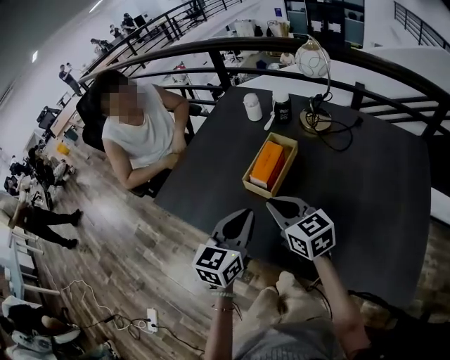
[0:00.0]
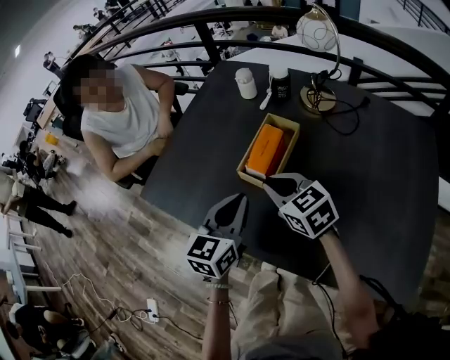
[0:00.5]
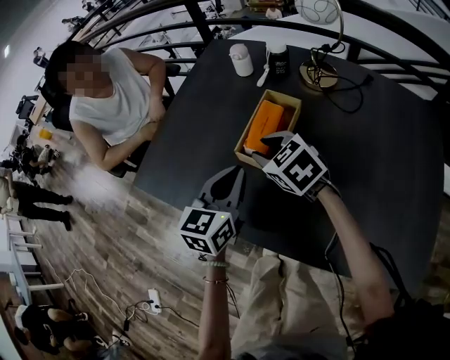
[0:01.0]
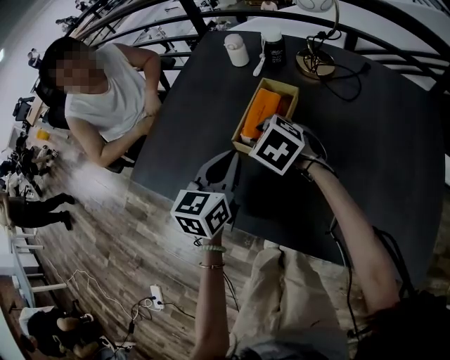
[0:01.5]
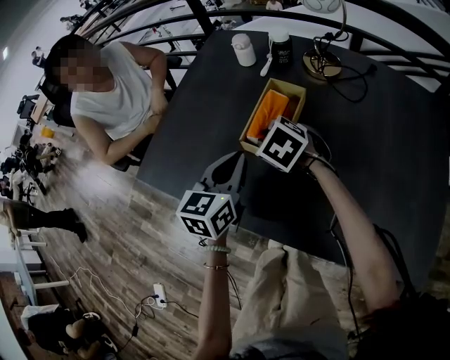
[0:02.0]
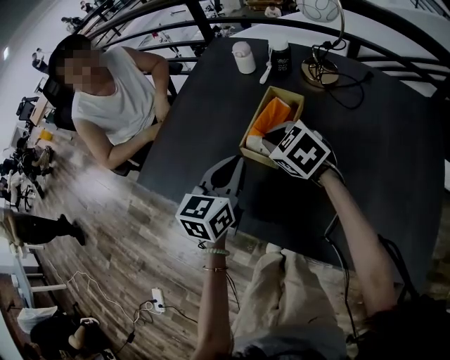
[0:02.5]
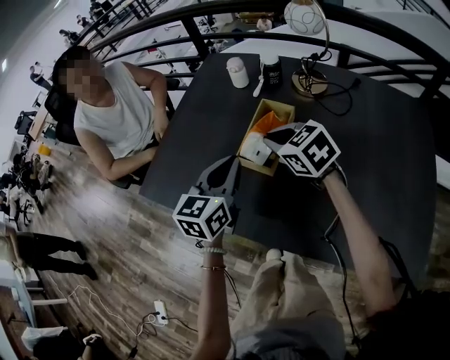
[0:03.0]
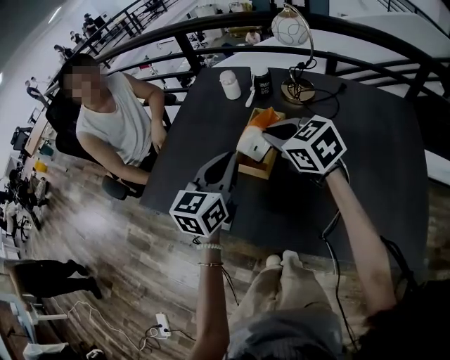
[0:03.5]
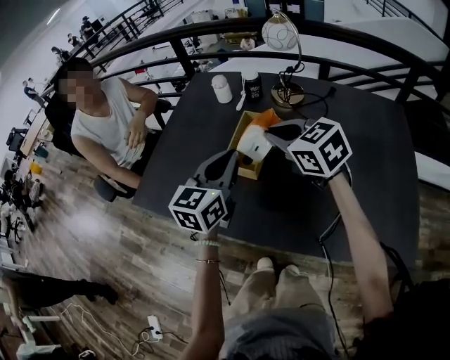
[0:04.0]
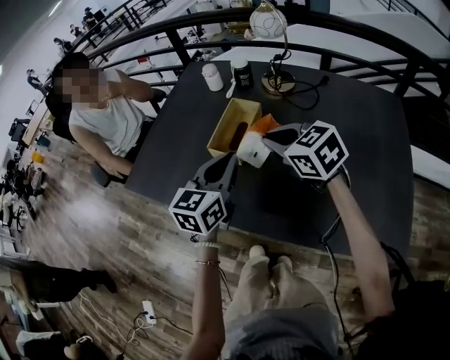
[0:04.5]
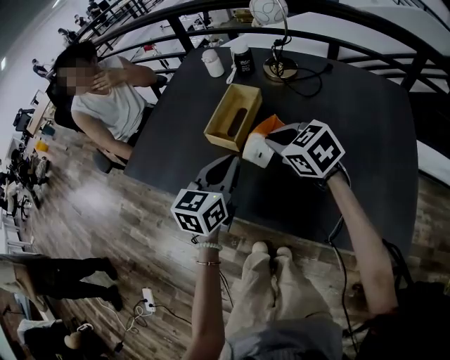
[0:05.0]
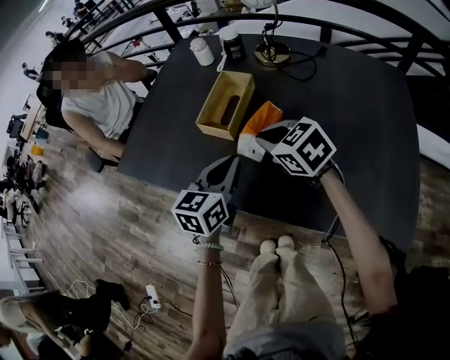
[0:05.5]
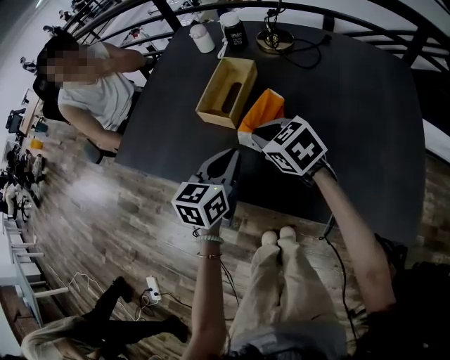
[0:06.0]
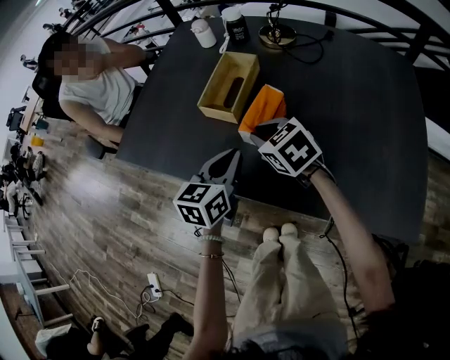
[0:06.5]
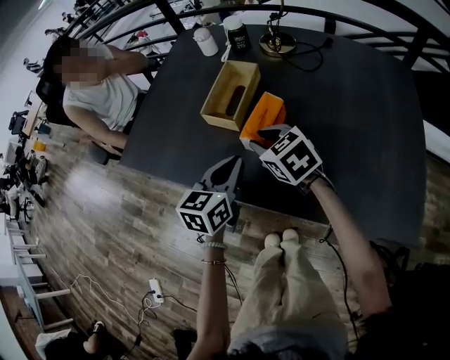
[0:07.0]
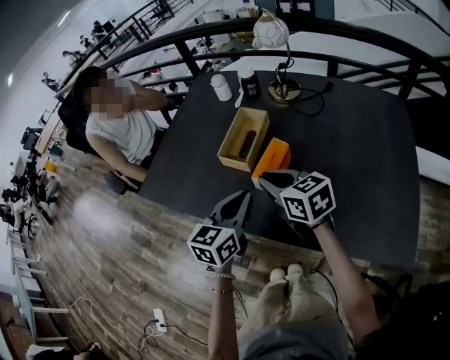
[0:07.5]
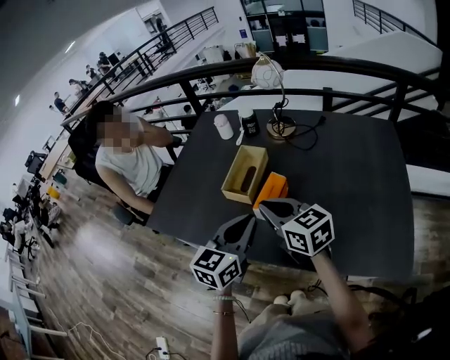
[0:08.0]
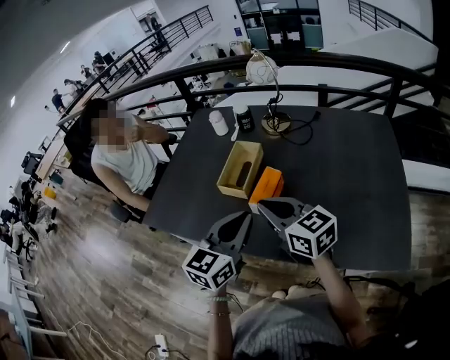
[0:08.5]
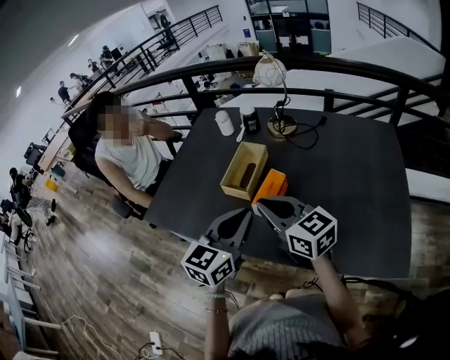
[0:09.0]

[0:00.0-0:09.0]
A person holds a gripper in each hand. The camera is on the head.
0:00.0 to 0:02.0: The grippers both shift forward and downward by some 15 cm. The right gripper tips its fingers downward by about 40 degrees.
0:02.0 to 0:04.5: The left gripper shifts about 10 cm to the right, upward and backward. Meanwhile the right gripper is displaced upward, to the right and backward by approximately 20 cm, and changes its angle by roughly 30 degrees.
0:04.5 to 0:07.0: The left gripper is displaced downward and backward by about 10 cm. The right gripper travels downward by some 10 cm.
0:07.0 to 0:09.0: The left gripper heads upward, covering some 15 cm, and swivels approximately 20 degrees, while the right gripper travels upward and backward by about 15 cm, angles its fingers upward, by about 30 degrees, and closes its fingers.

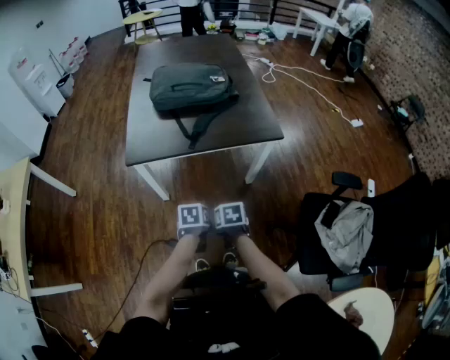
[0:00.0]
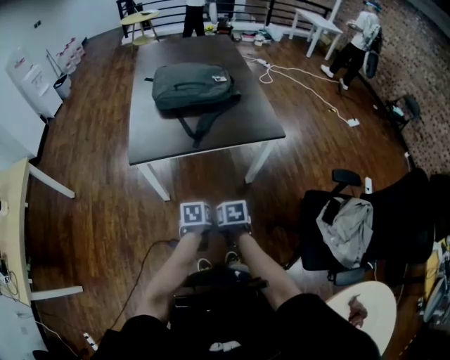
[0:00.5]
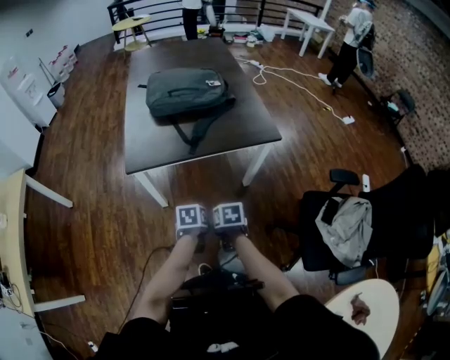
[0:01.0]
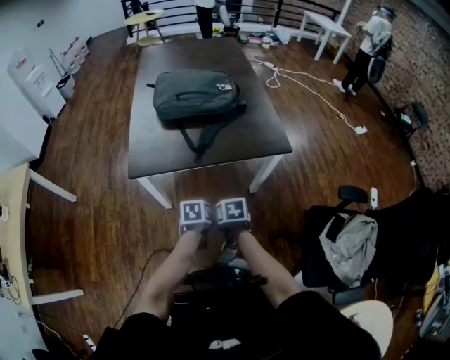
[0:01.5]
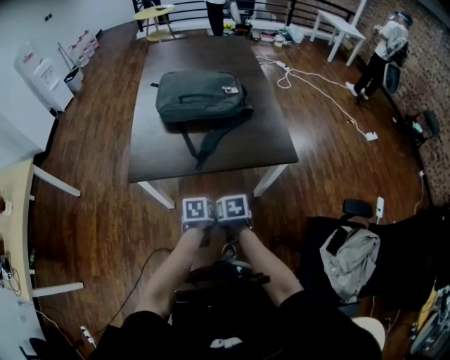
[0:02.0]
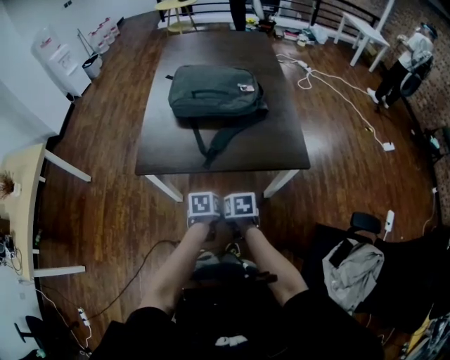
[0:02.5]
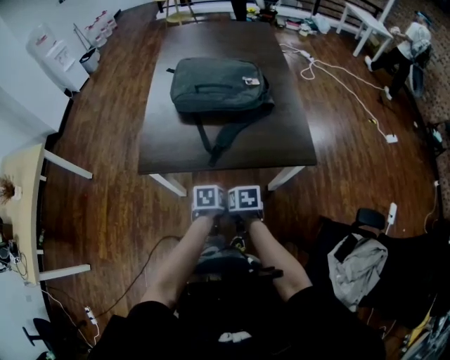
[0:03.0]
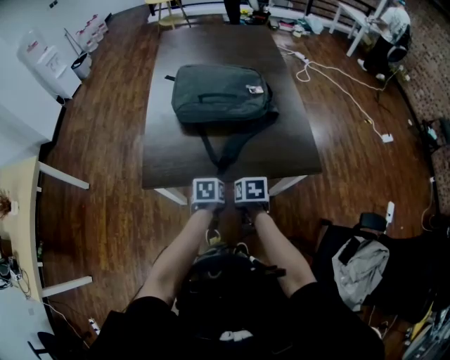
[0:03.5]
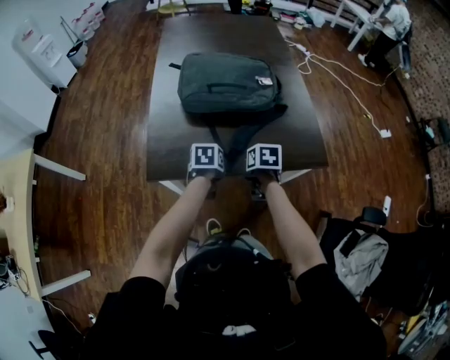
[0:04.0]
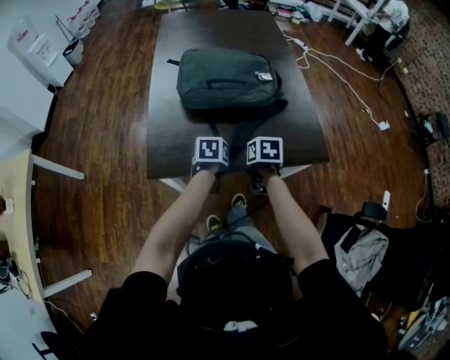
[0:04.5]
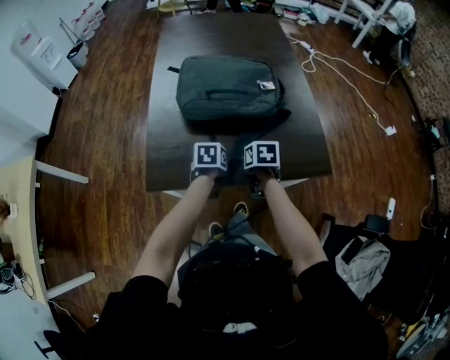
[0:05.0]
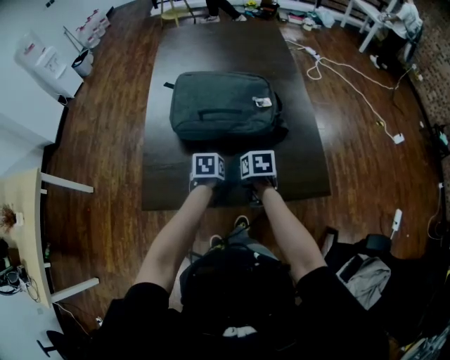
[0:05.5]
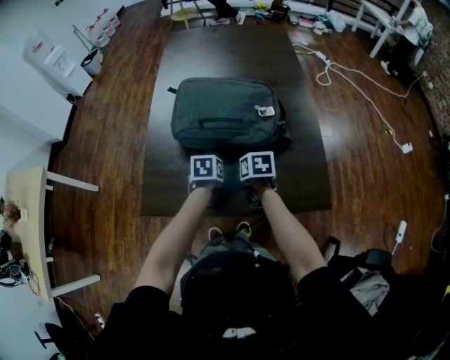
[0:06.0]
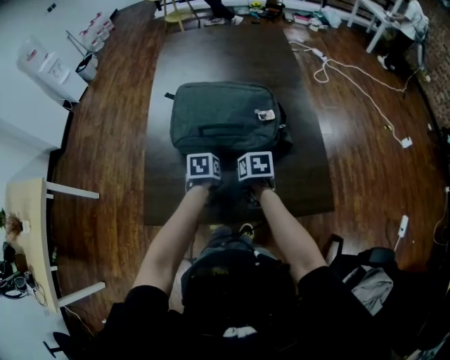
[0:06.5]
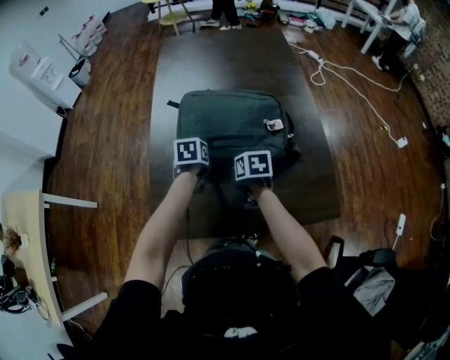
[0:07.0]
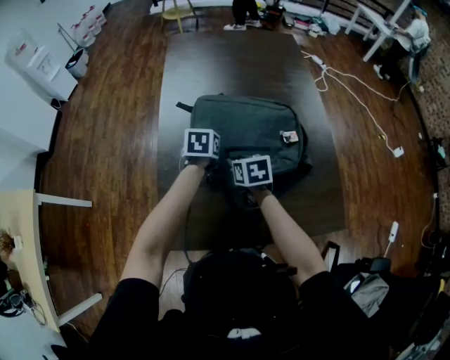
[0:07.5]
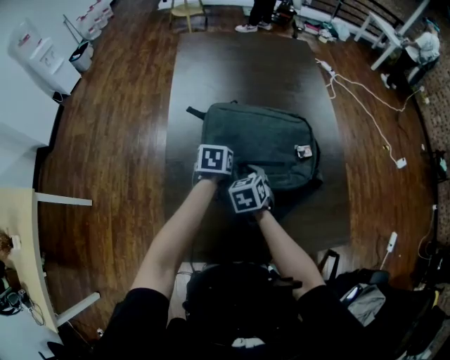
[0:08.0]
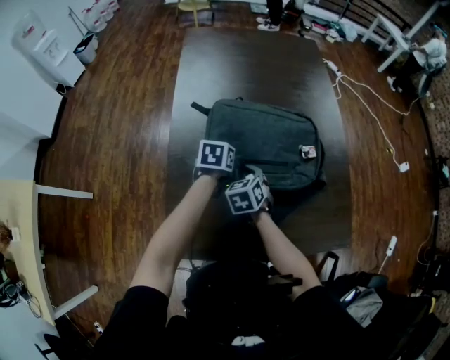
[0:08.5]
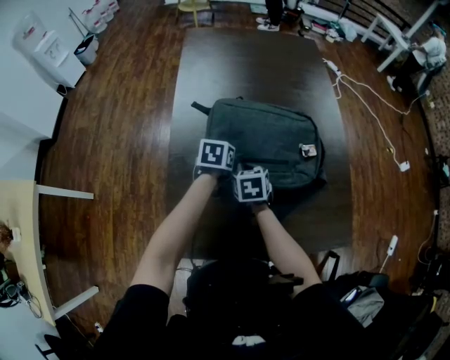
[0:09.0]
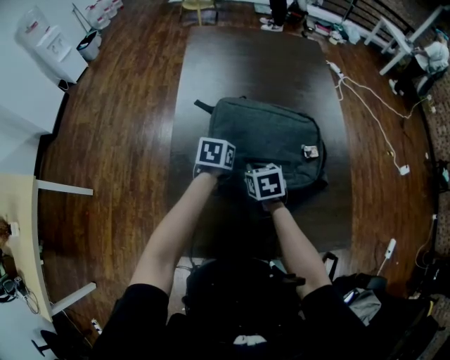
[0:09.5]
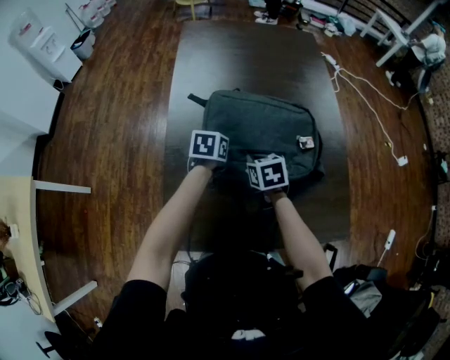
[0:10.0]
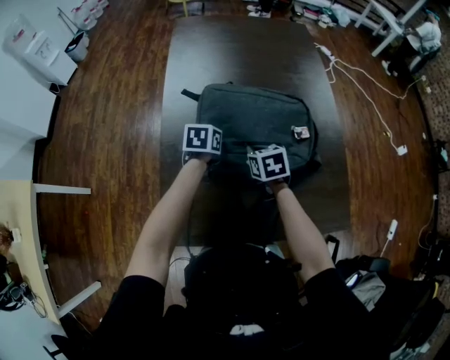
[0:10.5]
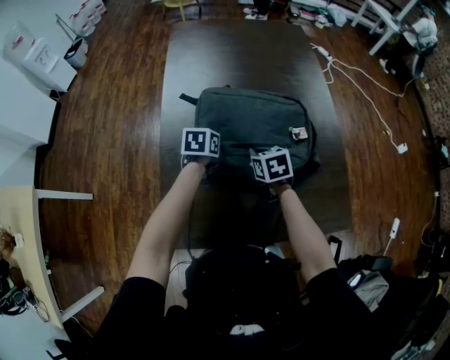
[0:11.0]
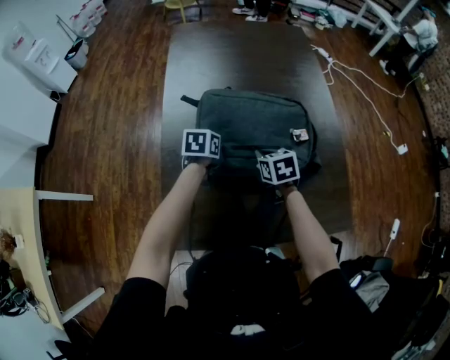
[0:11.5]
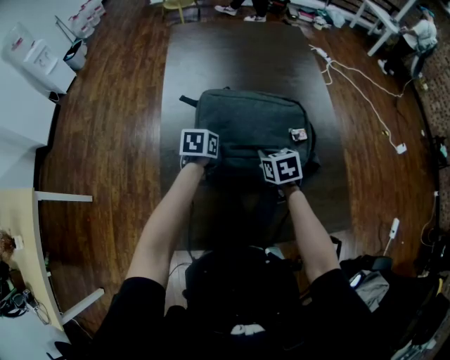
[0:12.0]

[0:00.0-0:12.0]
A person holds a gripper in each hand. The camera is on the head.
0:00.0 to 0:02.0: Both grippers move forward, some 15 cm.
0:02.0 to 0:04.0: The right gripper travels forward by about 20 cm. Meanwhile the left gripper heads forward and to the left, covering about 25 cm.
0:04.0 to 0:06.0: Both grippers move forward, approximately 15 cm.
0:06.0 to 0:08.0: The left gripper shifts some 25 cm forward and to the left. The right gripper moves to the left and forward, about 20 cm, swivels roughly 30 degrees, and opens.
0:08.0 to 0:10.0: The right gripper closes its fingers.
0:10.0 to 0:12.0: The right gripper goes about 5 cm to the right.

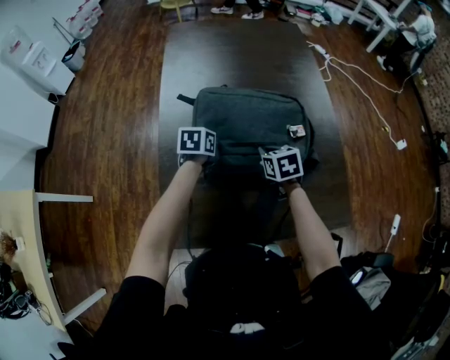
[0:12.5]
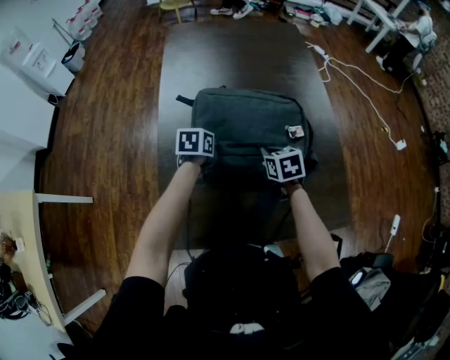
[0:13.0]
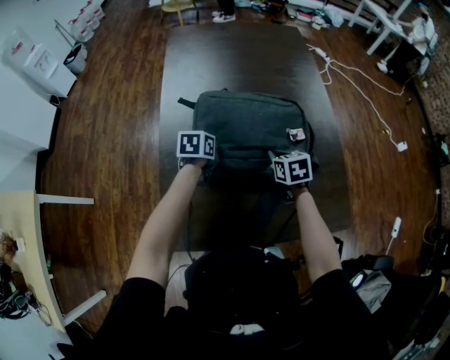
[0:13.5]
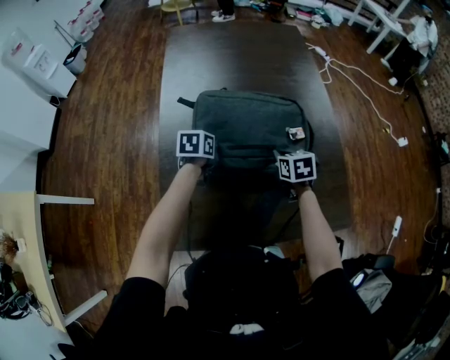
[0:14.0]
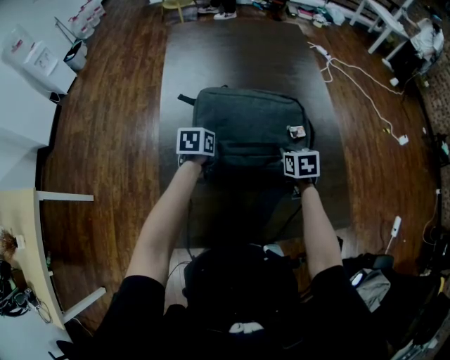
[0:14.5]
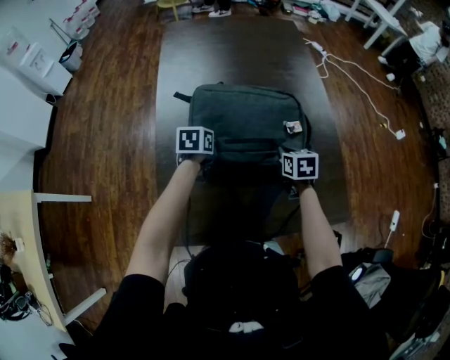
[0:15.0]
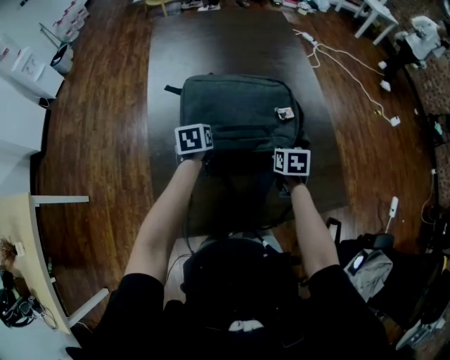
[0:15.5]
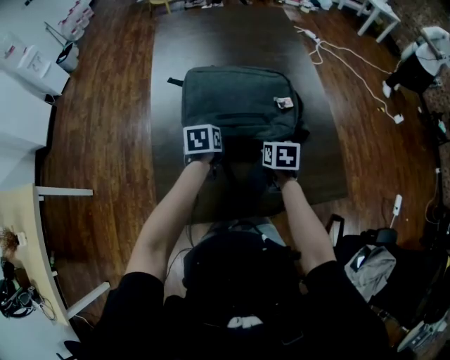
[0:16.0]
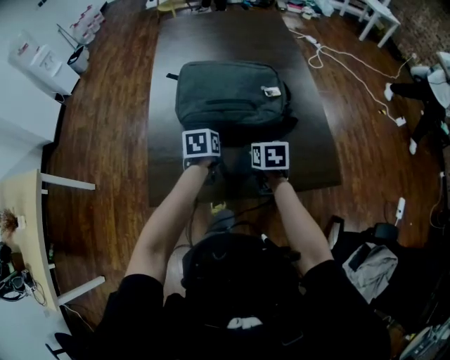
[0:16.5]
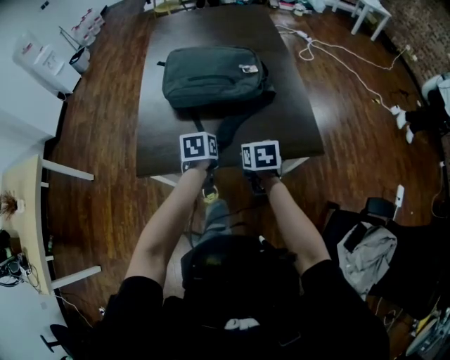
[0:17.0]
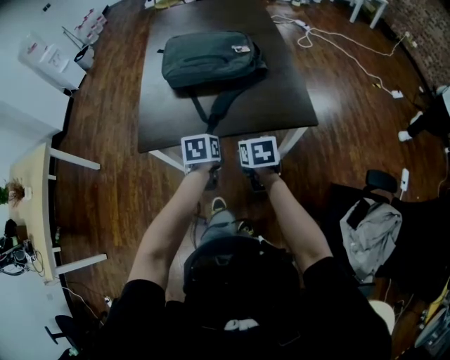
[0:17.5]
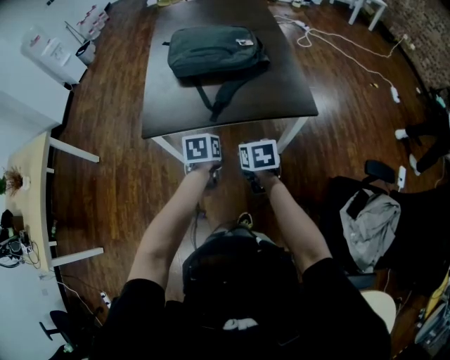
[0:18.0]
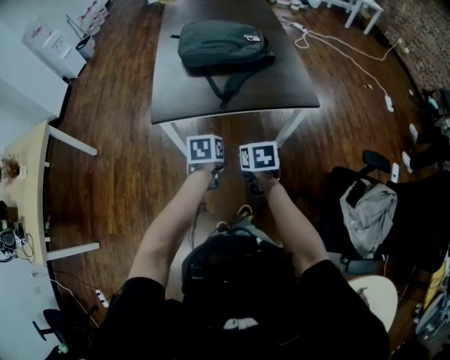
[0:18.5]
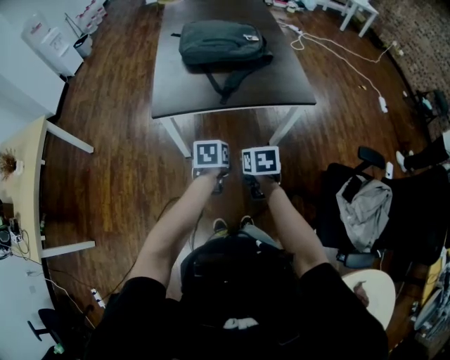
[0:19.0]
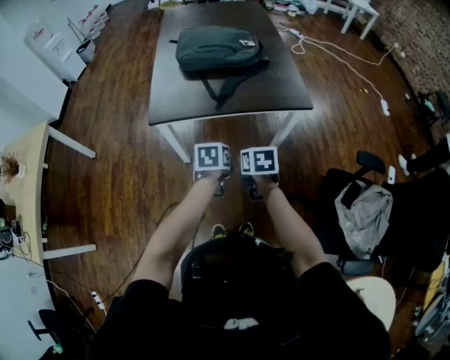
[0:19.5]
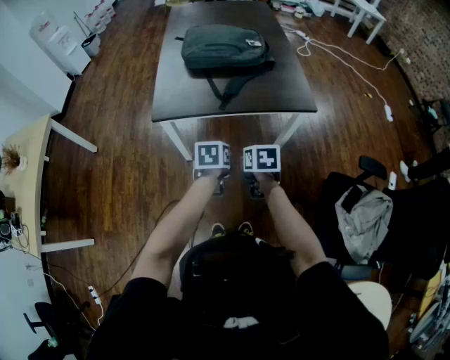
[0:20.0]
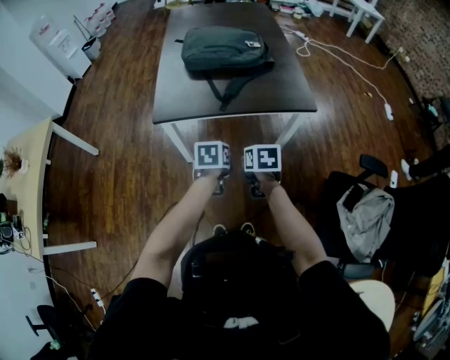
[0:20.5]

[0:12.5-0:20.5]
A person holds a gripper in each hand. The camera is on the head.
0:12.5 to 0:14.5: The right gripper goes approximately 10 cm to the right.
0:14.5 to 0:16.5: The right gripper shifts about 15 cm backward; the left gripper heads backward and to the right, covering approximately 20 cm.
0:16.5 to 0:18.5: The pair of grippers is taken backward, approximately 40 cm.
0:18.5 to 0:20.5: The grippers move only a little.
